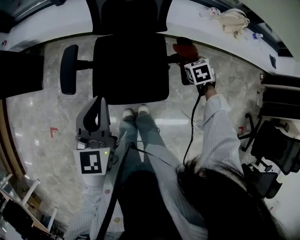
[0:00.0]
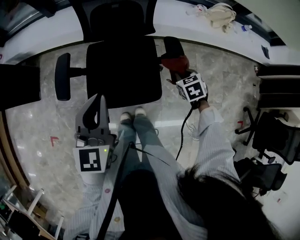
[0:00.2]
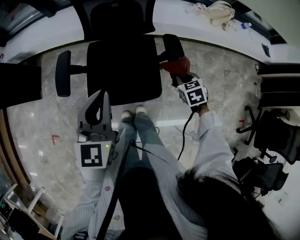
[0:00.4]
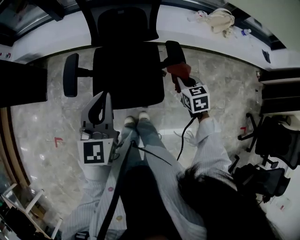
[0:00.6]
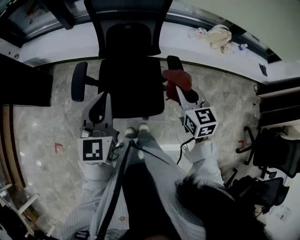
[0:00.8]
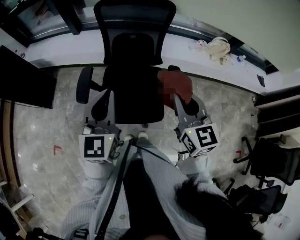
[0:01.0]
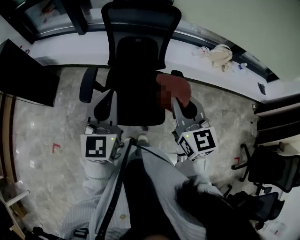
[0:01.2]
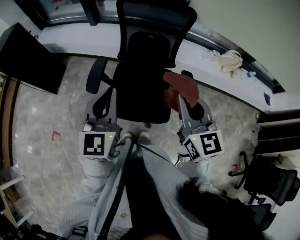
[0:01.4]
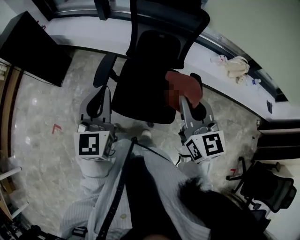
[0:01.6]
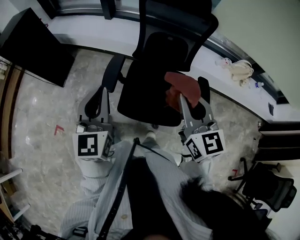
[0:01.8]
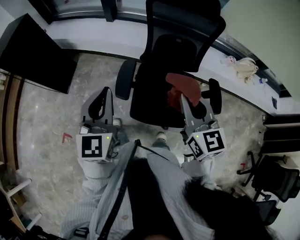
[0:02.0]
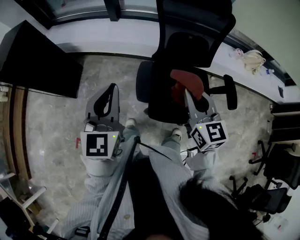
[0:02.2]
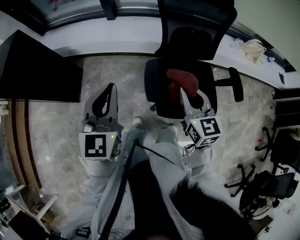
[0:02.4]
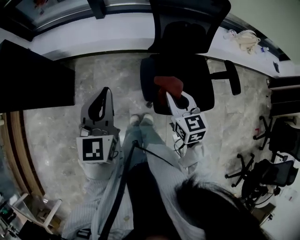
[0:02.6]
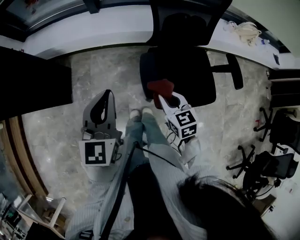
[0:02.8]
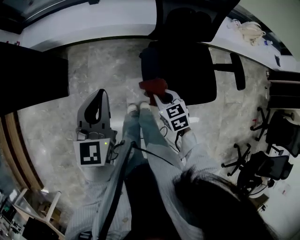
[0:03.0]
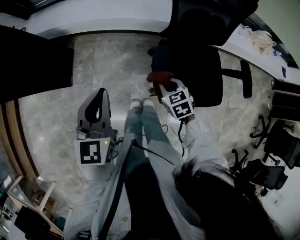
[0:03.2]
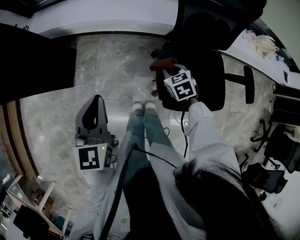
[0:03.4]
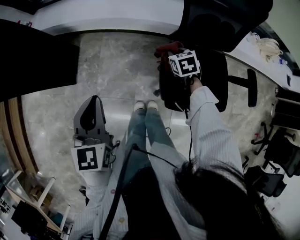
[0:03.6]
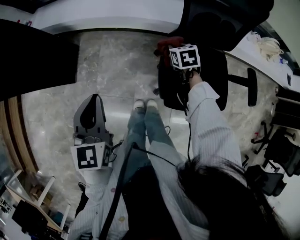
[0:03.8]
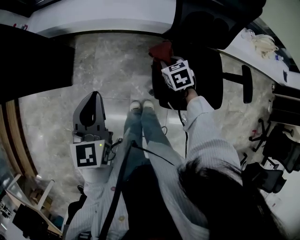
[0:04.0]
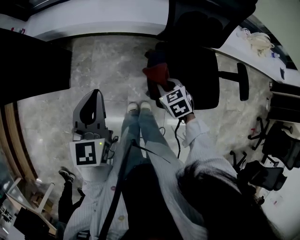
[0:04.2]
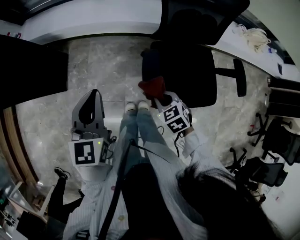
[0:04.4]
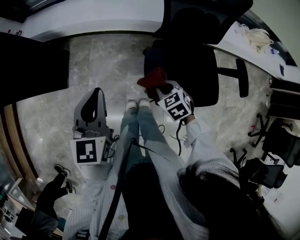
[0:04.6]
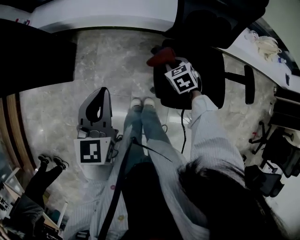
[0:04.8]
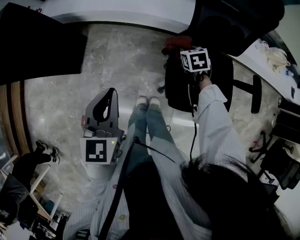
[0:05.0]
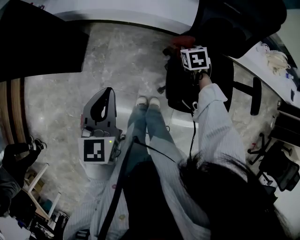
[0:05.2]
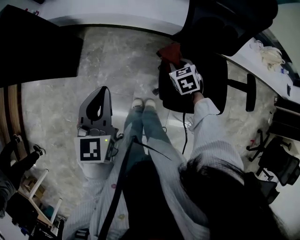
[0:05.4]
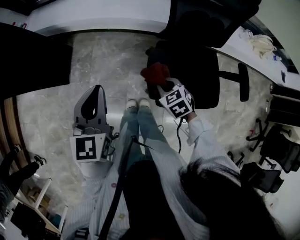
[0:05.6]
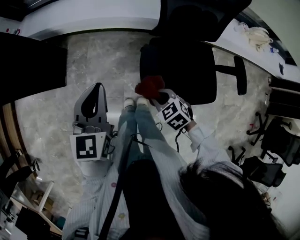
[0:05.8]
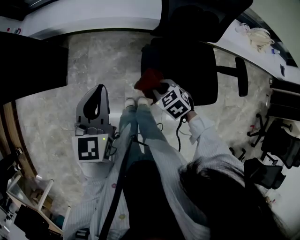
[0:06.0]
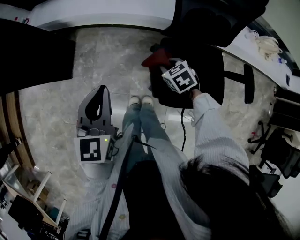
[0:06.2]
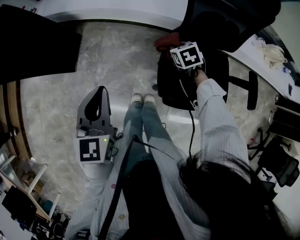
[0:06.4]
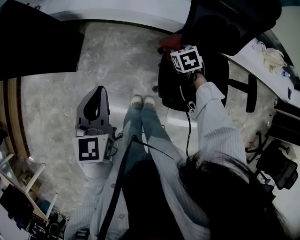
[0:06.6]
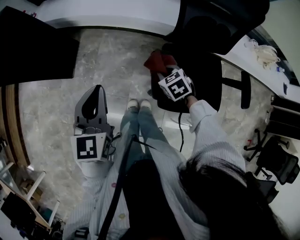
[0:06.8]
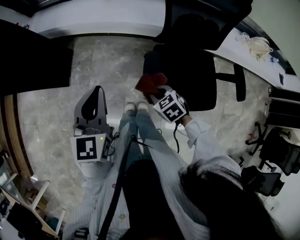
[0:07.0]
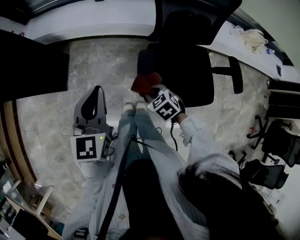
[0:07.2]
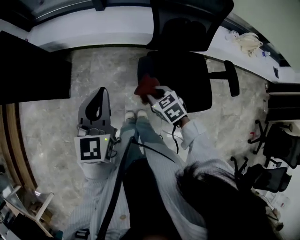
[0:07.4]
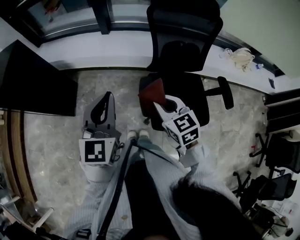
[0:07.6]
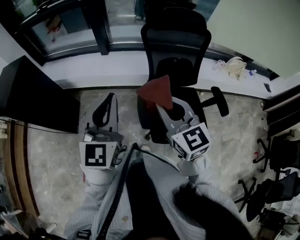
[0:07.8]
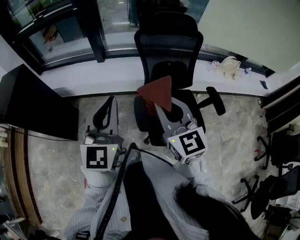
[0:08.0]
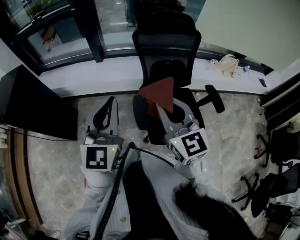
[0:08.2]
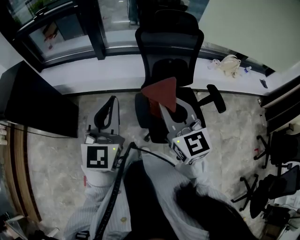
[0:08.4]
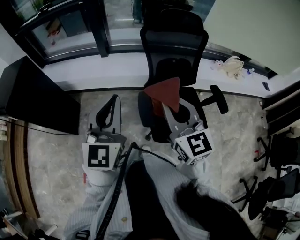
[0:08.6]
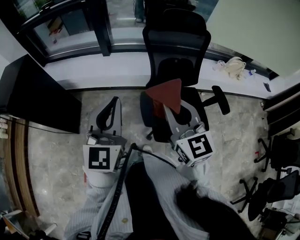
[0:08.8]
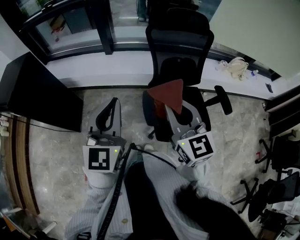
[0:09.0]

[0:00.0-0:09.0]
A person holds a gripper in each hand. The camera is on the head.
0:00.0 to 0:01.6: The right gripper travels upward and to the left by approximately 40 cm, and points its fingers approximately 60 degrees further upward, while the left gripper moves upward and to the left, approximately 15 cm.
0:01.6 to 0:03.0: The left gripper goes some 35 cm to the left and forward, while the right gripper is displaced to the left and downward by roughly 50 cm, and tips its fingers downward by some 40 degrees.
0:03.0 to 0:04.4: The left gripper moves about 10 cm to the left and comes back. Meanwhile the right gripper moves approximately 20 cm forward and comes back.
0:04.4 to 0:06.0: The right gripper goes forward and returns, roughly 20 cm each way.
0:06.0 to 0:07.6: The right gripper is displaced upward by some 25 cm, and changes its angle by roughly 30 degrees; the left gripper is displaced upward by roughly 15 cm.
0:07.6 to 0:09.0: The left gripper shifts roughly 10 cm upward. Meanwhile the right gripper goes roughly 15 cm upward, and changes its angle by some 30 degrees.

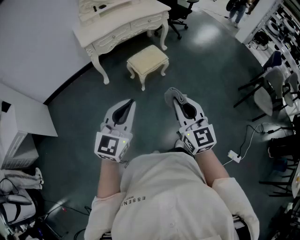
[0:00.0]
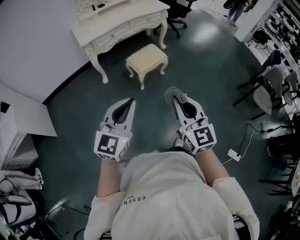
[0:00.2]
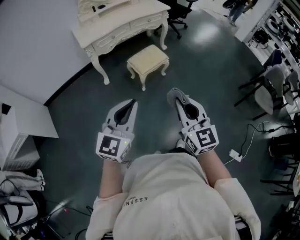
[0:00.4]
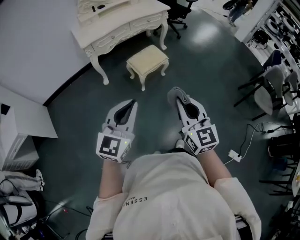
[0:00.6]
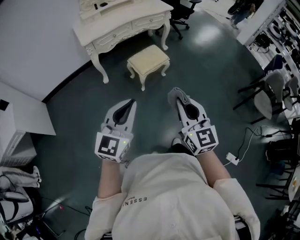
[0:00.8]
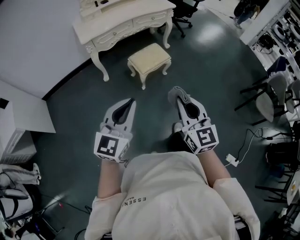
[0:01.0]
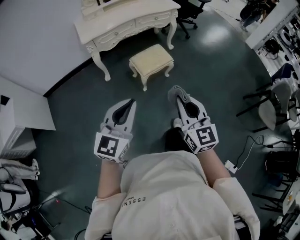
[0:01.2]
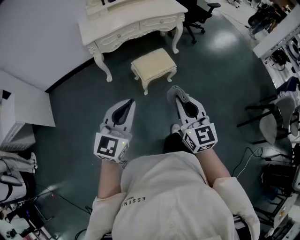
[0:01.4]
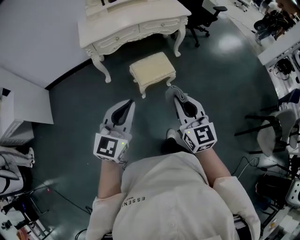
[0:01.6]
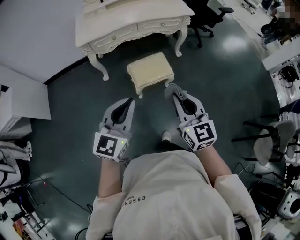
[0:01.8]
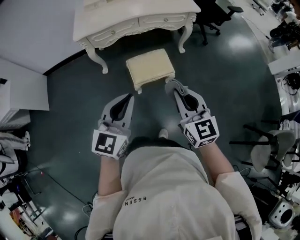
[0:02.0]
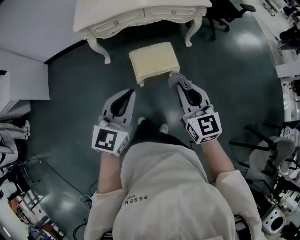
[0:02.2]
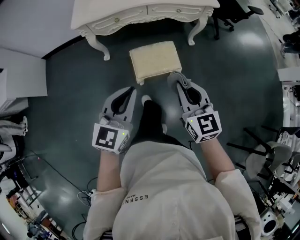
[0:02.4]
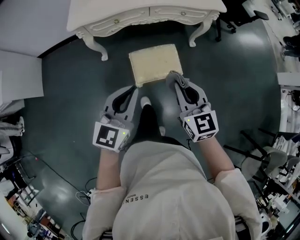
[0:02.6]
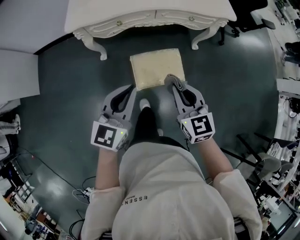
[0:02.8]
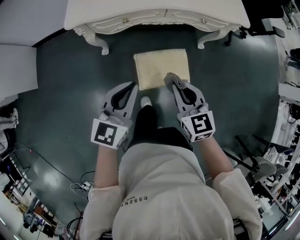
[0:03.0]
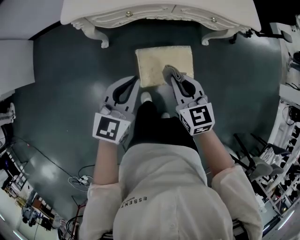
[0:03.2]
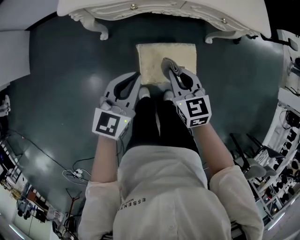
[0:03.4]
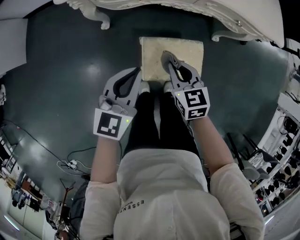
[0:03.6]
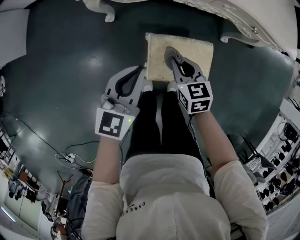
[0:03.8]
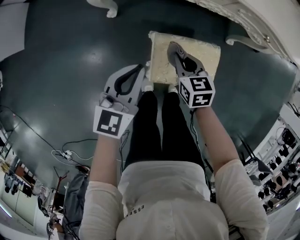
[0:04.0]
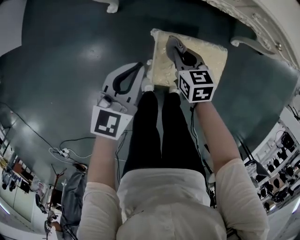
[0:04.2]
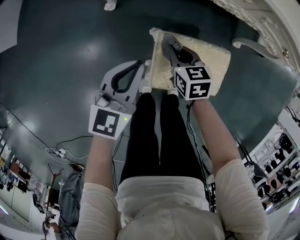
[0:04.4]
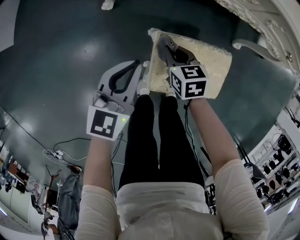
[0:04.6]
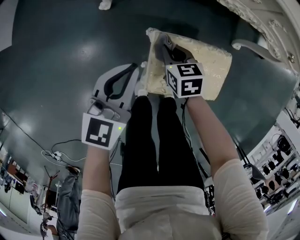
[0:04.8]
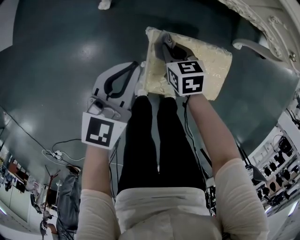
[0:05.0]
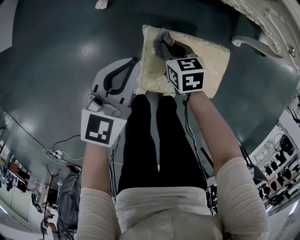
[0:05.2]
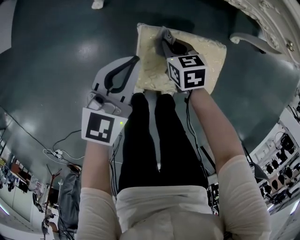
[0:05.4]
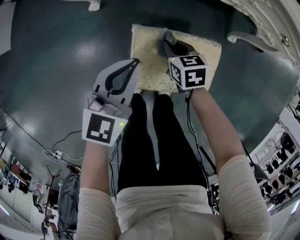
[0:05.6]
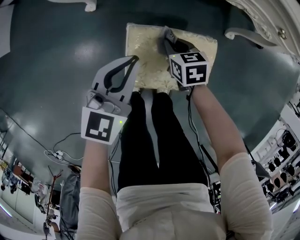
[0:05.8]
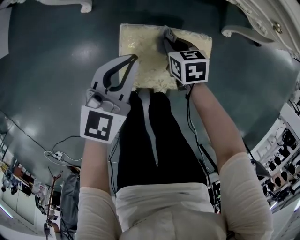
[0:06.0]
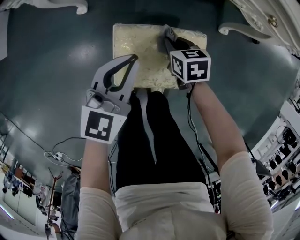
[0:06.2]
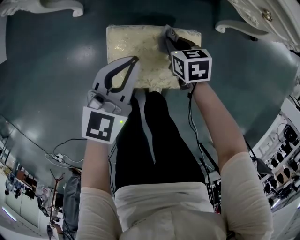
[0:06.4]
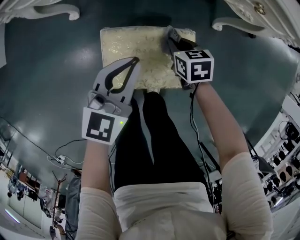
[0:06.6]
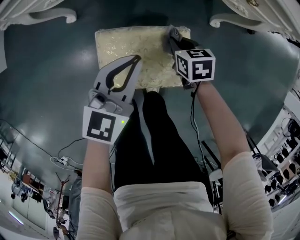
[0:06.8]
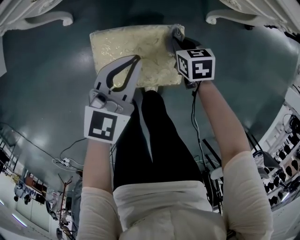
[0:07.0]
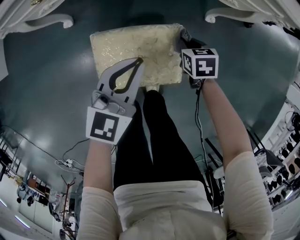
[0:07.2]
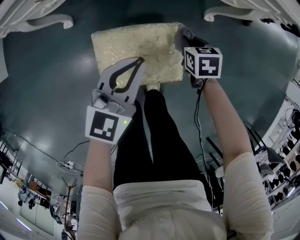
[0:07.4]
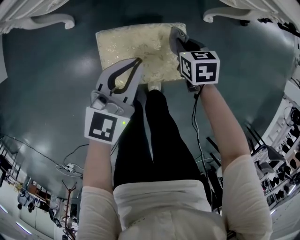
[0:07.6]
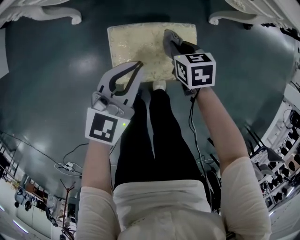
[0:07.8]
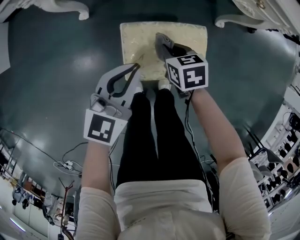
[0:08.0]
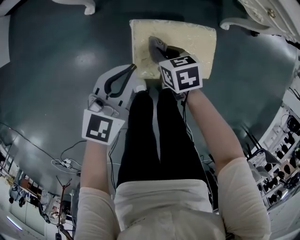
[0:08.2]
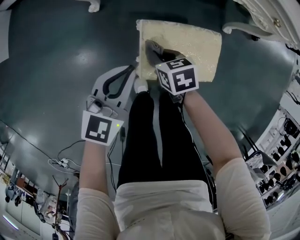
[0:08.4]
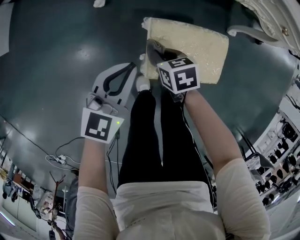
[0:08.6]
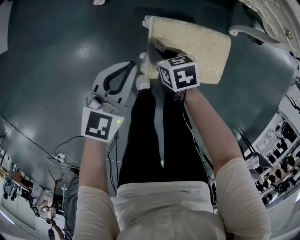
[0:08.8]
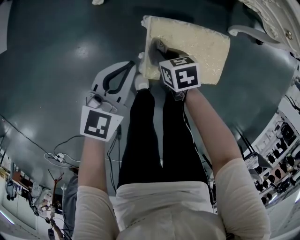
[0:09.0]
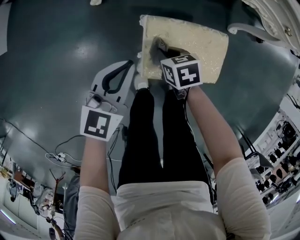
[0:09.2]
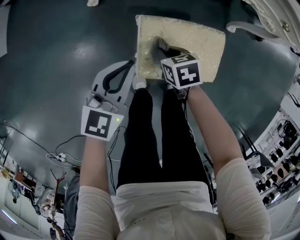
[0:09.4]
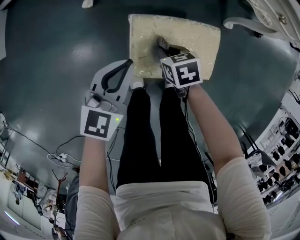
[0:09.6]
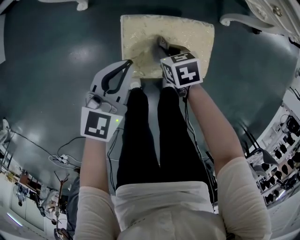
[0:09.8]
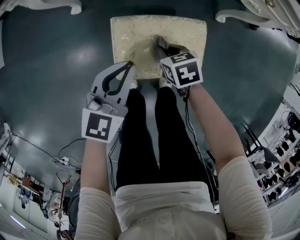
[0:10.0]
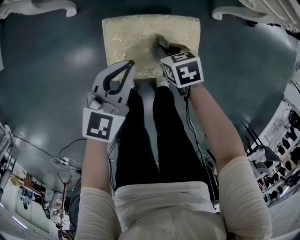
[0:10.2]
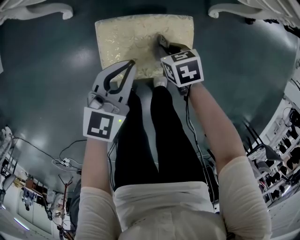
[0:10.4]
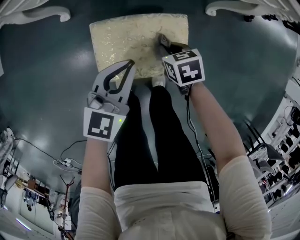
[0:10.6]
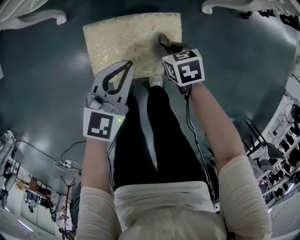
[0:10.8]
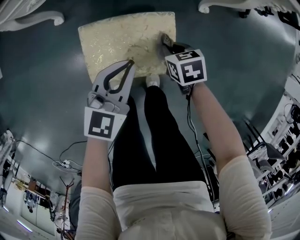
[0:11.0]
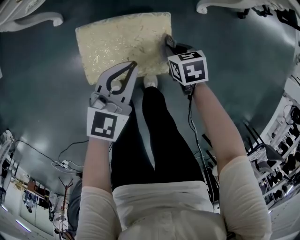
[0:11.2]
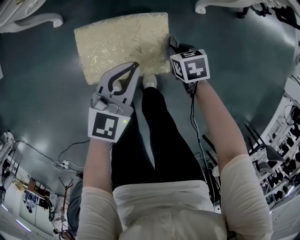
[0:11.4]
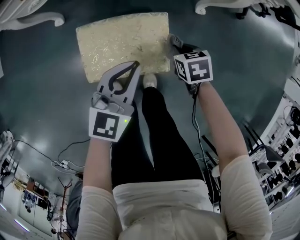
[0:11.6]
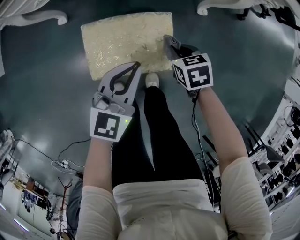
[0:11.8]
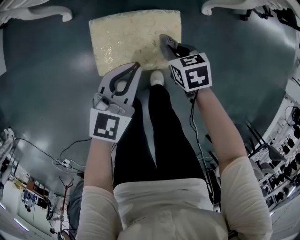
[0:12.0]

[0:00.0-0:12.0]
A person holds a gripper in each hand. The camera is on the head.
0:00.0 to 0:01.6: The left gripper goes approximately 20 cm forward and to the right. The right gripper travels forward by some 25 cm.
0:01.6 to 0:03.0: The grippers both shift forward and downward by some 40 cm. The right gripper changes its angle by approximately 30 degrees.
0:03.0 to 0:04.4: The left gripper moves downward, roughly 30 cm, while the right gripper shifts about 40 cm downward and forward, and rotates approximately 30 degrees.
0:04.4 to 0:06.0: The left gripper travels to the right by roughly 10 cm; the right gripper is displaced to the right and downward by about 15 cm.
0:06.0 to 0:07.6: Both grippers travel together to the right, approximately 10 cm.
0:07.6 to 0:09.0: The grippers both shift to the left by some 25 cm.
0:09.0 to 0:10.4: Both grippers move to the right, about 20 cm.
0:10.4 to 0:12.0: Both grippers move to the right, some 5 cm.

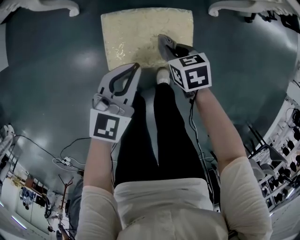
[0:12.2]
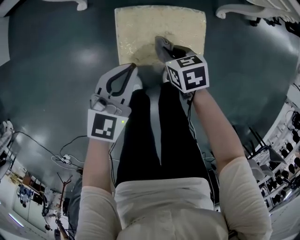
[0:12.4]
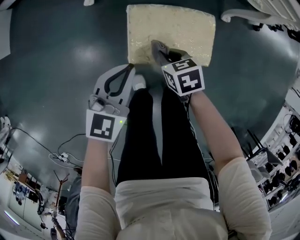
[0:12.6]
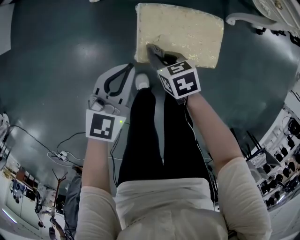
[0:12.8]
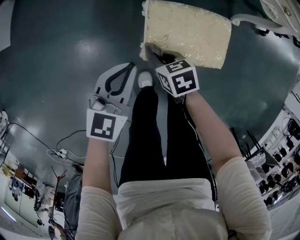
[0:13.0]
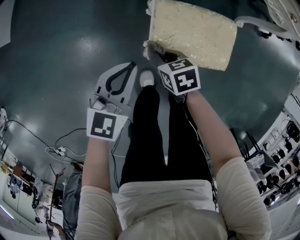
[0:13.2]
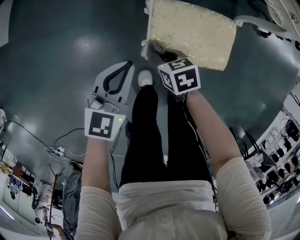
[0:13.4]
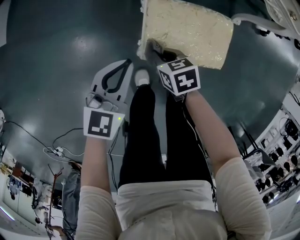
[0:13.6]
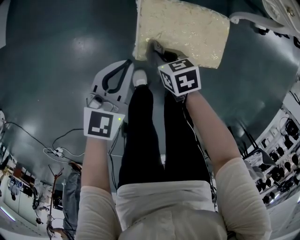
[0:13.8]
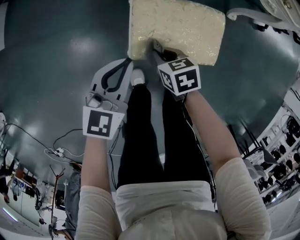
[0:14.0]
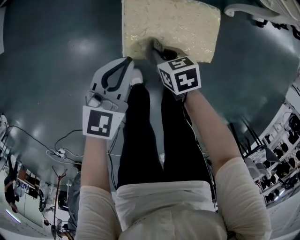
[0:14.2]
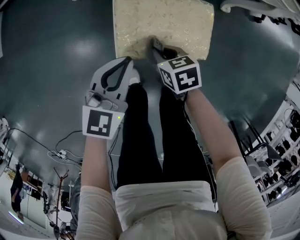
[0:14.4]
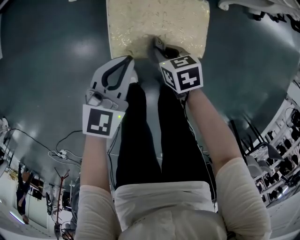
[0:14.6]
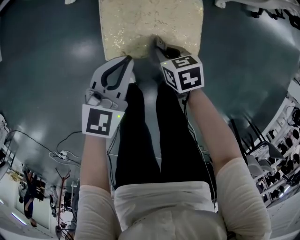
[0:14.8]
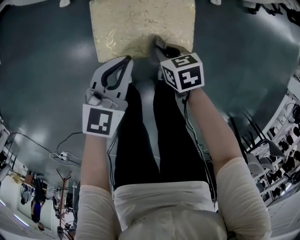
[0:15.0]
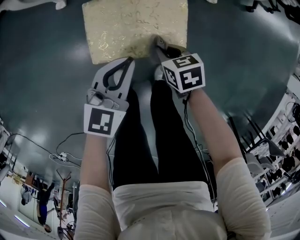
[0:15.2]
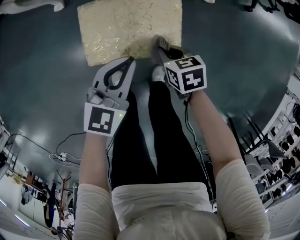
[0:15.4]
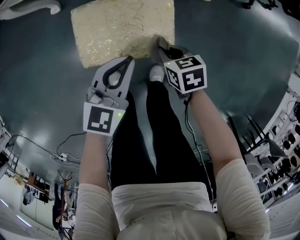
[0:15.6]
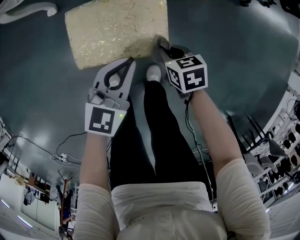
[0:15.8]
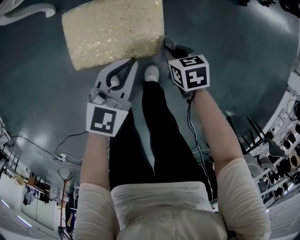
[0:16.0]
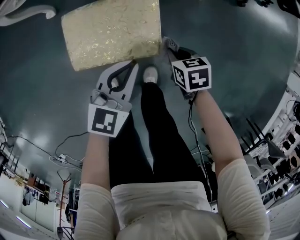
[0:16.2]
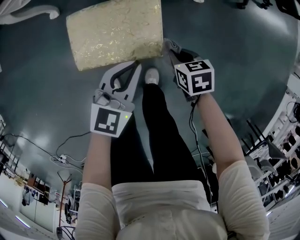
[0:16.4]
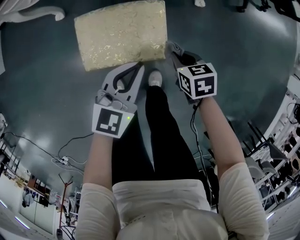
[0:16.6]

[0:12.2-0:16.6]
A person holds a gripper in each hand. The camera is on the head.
0:12.2 to 0:13.6: Both grippers travel together to the left, some 20 cm.
0:13.6 to 0:15.2: The grippers both shift to the right by some 20 cm.
0:15.2 to 0:16.6: The grippers both shift to the right by about 10 cm.
